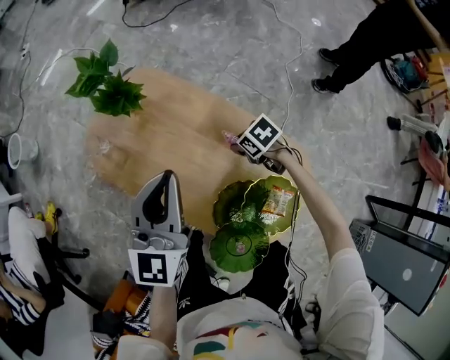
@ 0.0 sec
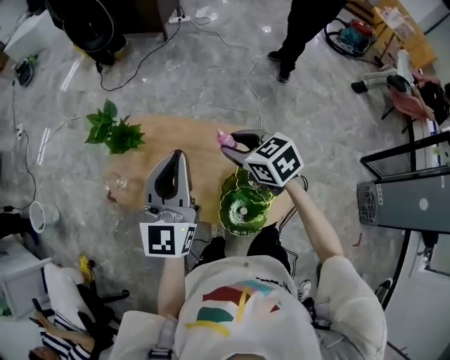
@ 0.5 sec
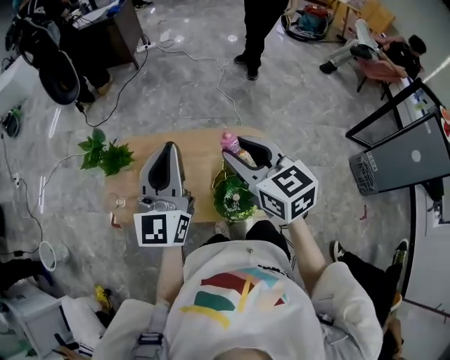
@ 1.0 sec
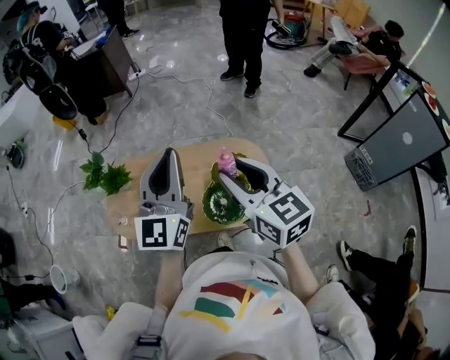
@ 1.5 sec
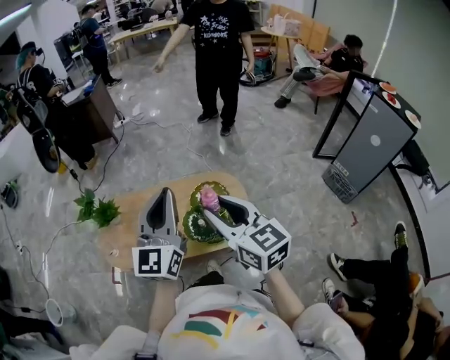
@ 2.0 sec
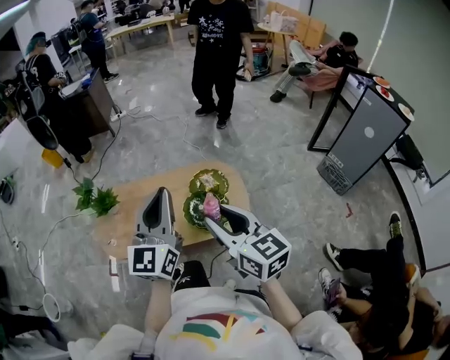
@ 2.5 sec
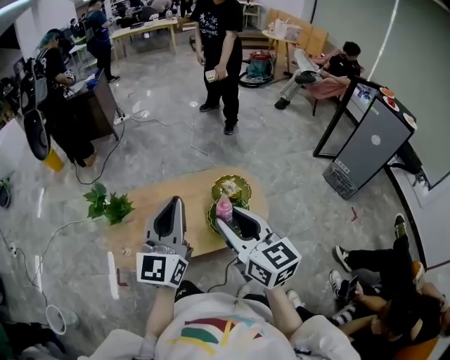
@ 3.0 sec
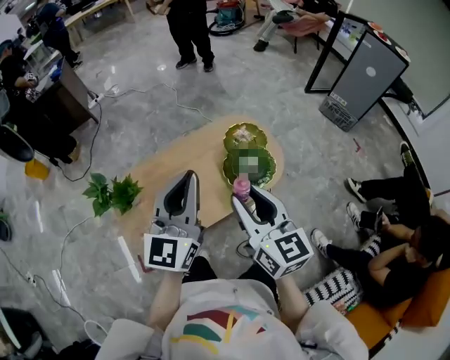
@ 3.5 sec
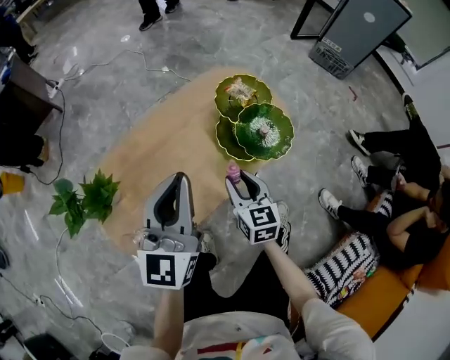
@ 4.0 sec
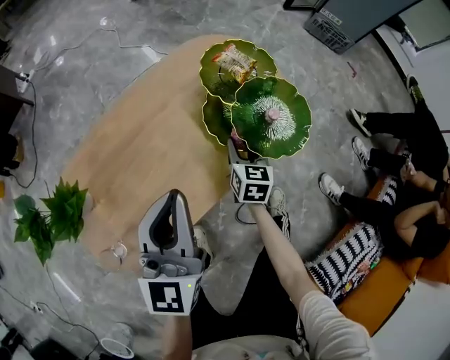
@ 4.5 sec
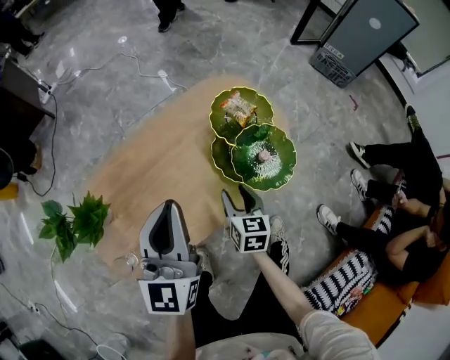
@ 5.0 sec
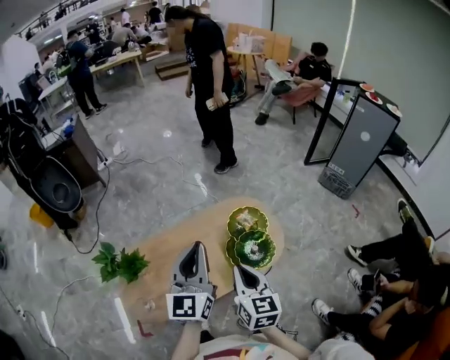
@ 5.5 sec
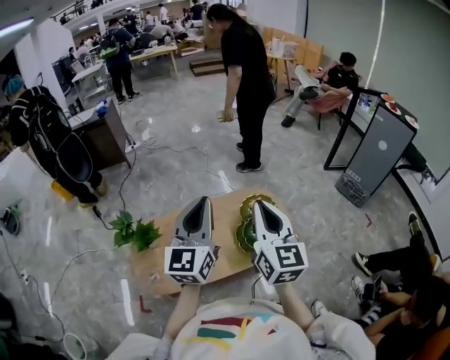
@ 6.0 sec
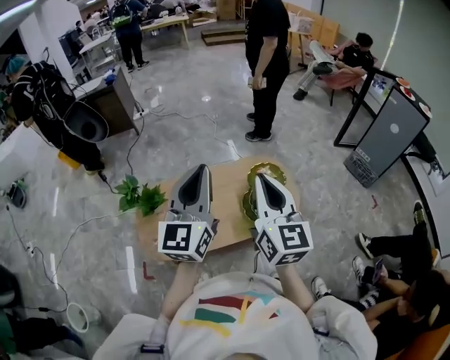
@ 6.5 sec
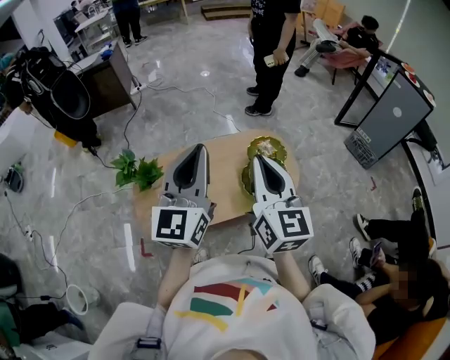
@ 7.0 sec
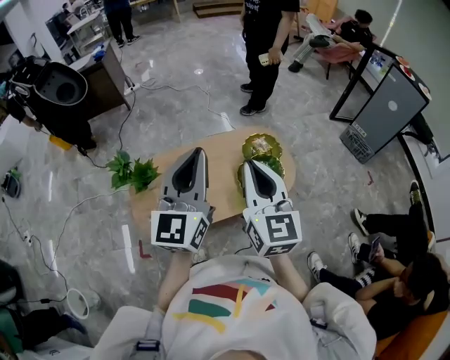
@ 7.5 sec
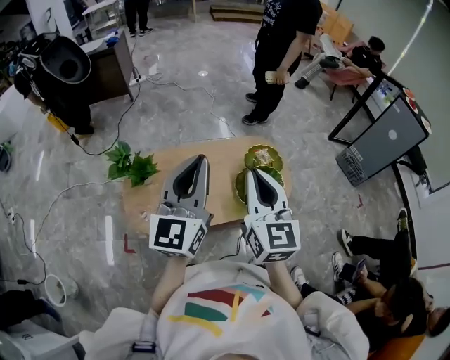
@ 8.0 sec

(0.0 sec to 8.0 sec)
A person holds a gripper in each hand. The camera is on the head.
0.0 sec - 2.0 sec: The left gripper moves about 35 cm, and changes its angle by roughly 40 degrees. Meanwhile the right gripper moves upward, about 50 cm, and tilts its fingers some 60 degrees upward.
2.0 sec - 4.0 sec: The right gripper goes roughly 40 cm downward, and rotates about 50 degrees, while the left gripper goes about 25 cm downward, and rotates about 30 degrees.
4.0 sec - 6.0 sec: The left gripper is displaced upward by about 25 cm, and swivels roughly 20 degrees. The right gripper moves upward, some 40 cm, turns by some 30 degrees, and closes up.
6.0 sec - 8.0 sec: The left gripper travels backward by roughly 5 cm; the right gripper shifts about 5 cm to the left.

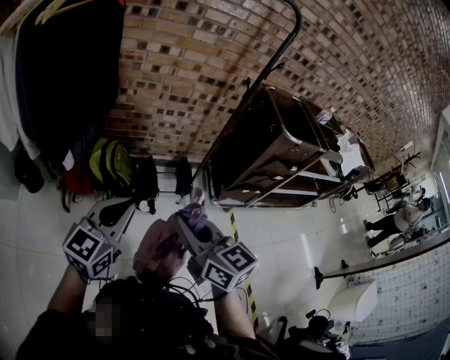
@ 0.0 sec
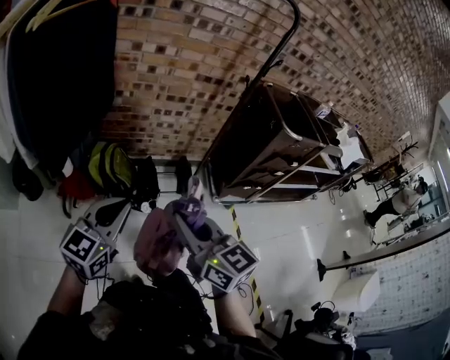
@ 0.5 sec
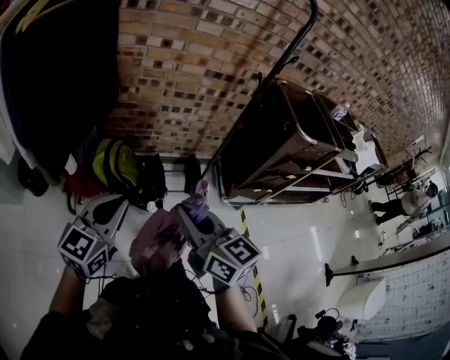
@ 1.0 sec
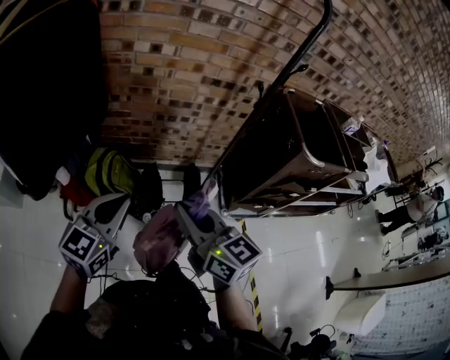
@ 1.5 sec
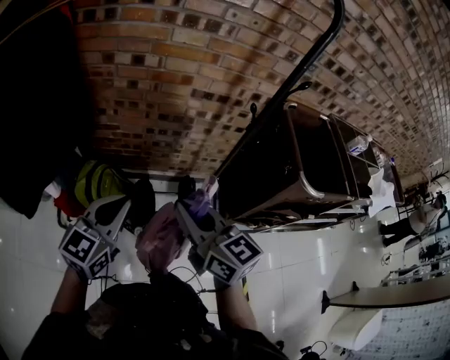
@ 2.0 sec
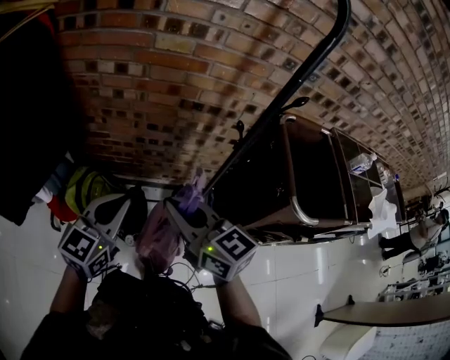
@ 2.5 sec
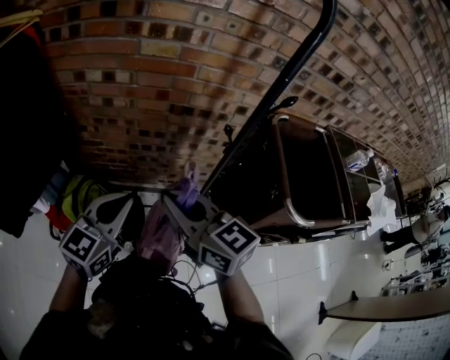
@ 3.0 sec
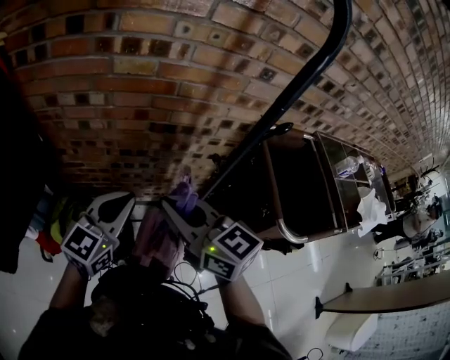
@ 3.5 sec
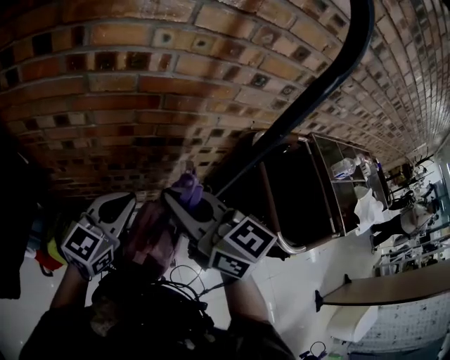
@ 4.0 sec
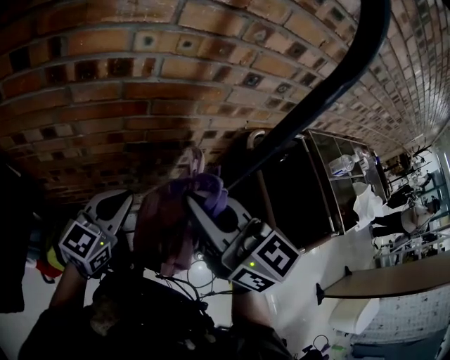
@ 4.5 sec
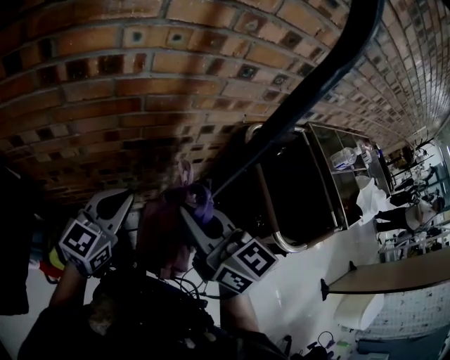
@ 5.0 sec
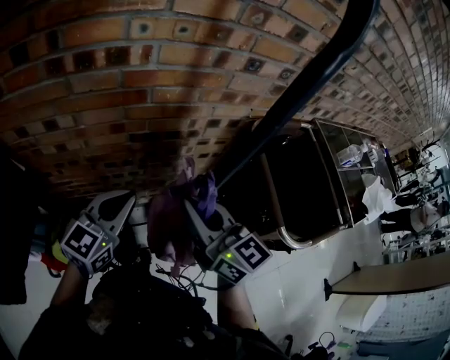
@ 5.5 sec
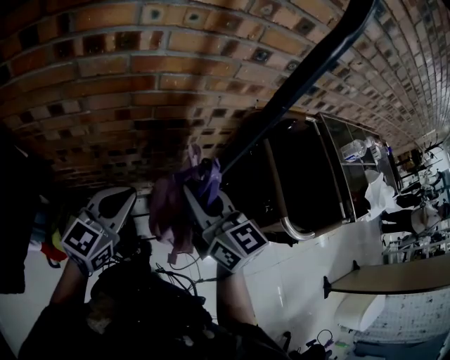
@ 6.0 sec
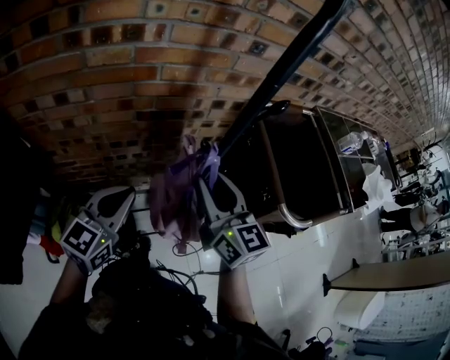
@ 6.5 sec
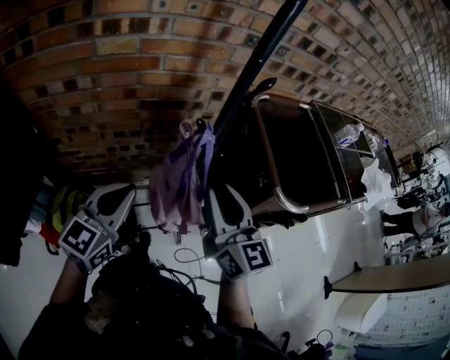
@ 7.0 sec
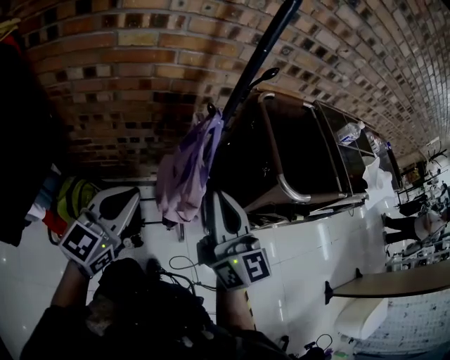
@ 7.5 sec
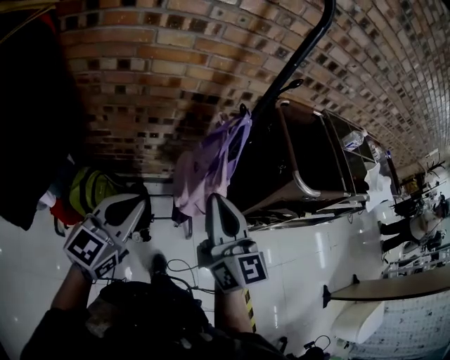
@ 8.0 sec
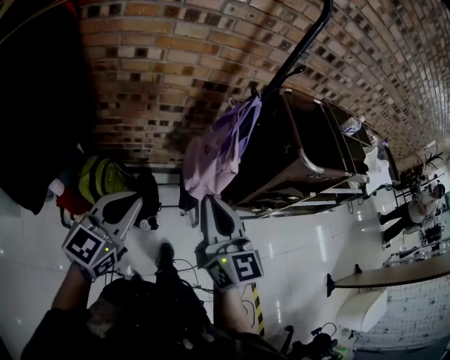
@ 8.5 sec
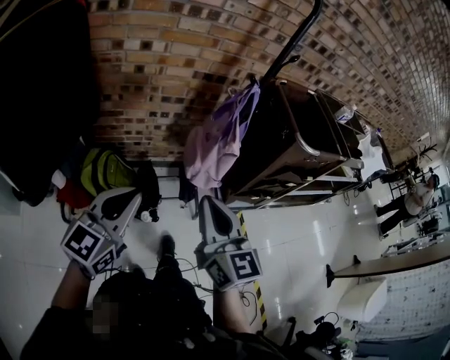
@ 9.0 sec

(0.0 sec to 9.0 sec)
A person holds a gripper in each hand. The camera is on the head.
0.0 sec - 2.0 sec: The two grippers go about 35 cm forward and to the right.
2.0 sec - 4.5 sec: The left gripper goes about 35 cm forward and to the right, while the right gripper is displaced forward, to the right and upward by approximately 35 cm.
4.5 sec - 7.0 sec: The right gripper is displaced backward, downward and to the right by roughly 20 cm, rotates about 20 degrees, and opens; the left gripper moves backward, some 15 cm.
7.0 sec - 9.0 sec: Both grippers travel together backward and to the left, roughly 35 cm. The right gripper closes up.

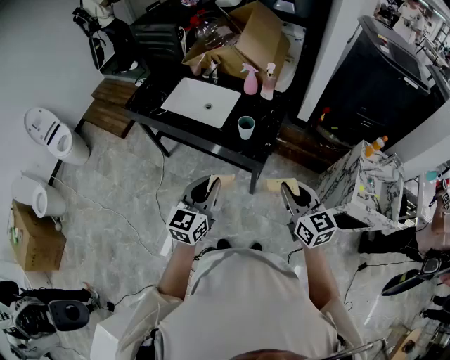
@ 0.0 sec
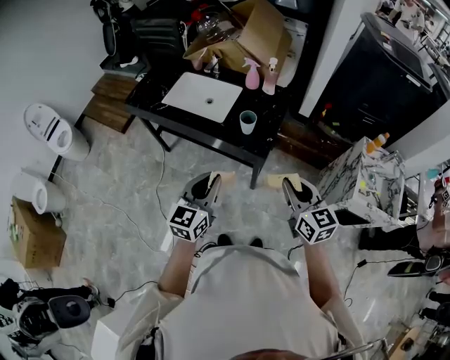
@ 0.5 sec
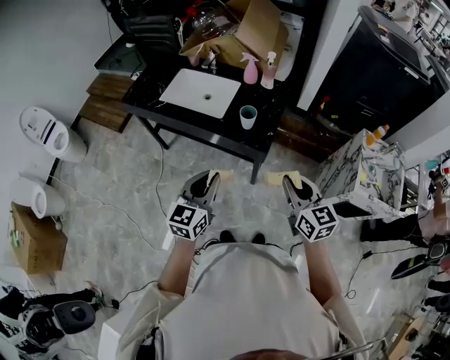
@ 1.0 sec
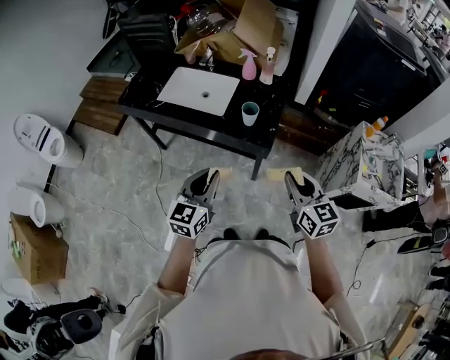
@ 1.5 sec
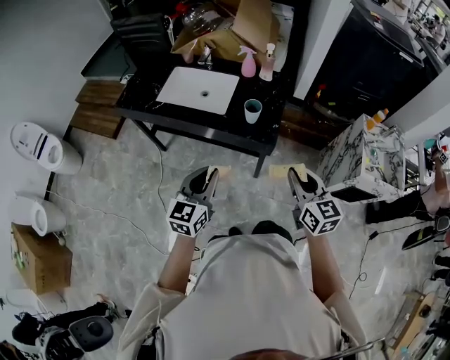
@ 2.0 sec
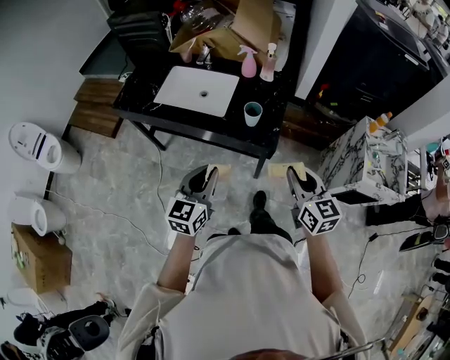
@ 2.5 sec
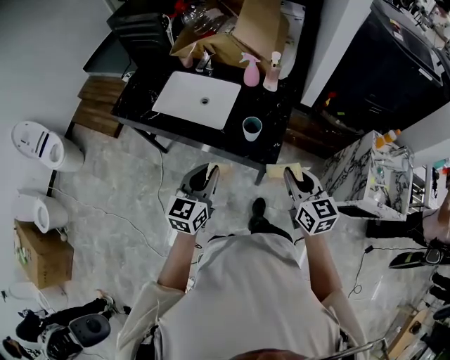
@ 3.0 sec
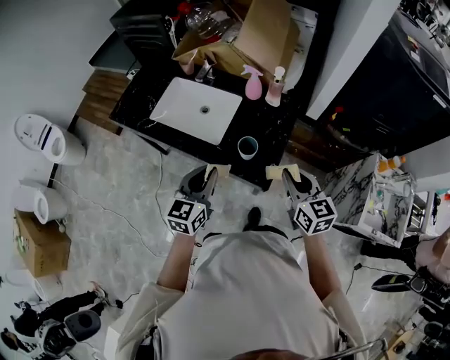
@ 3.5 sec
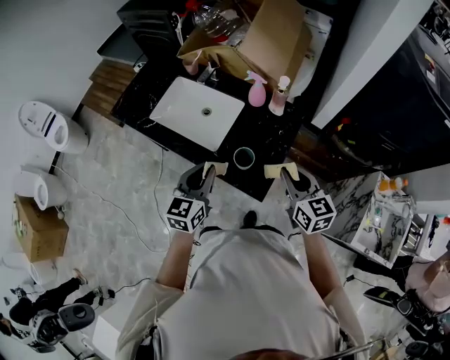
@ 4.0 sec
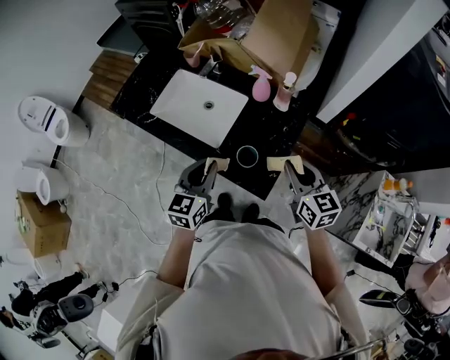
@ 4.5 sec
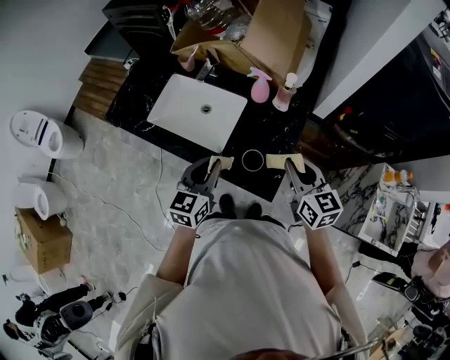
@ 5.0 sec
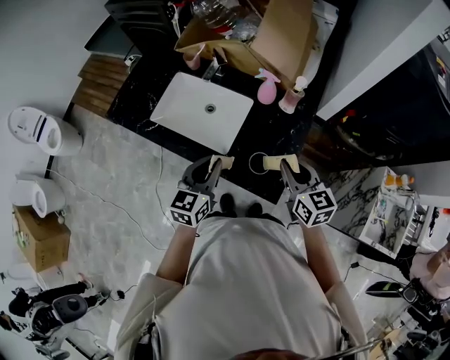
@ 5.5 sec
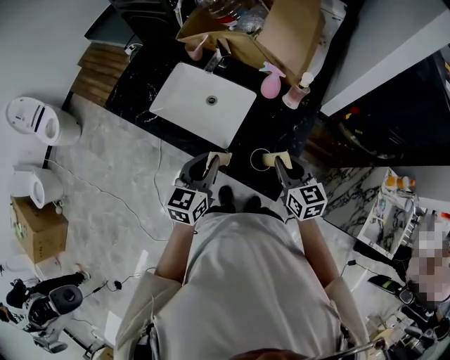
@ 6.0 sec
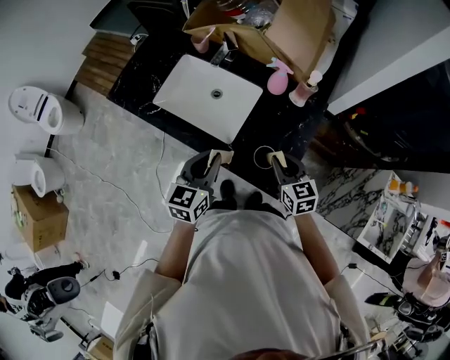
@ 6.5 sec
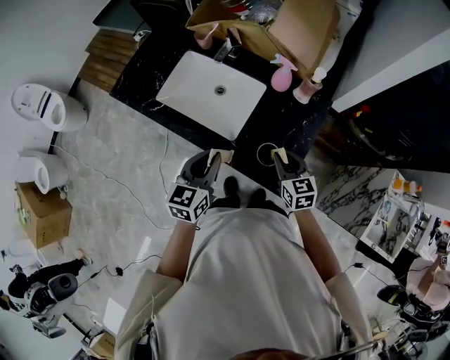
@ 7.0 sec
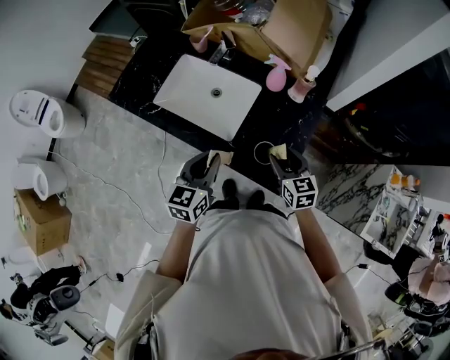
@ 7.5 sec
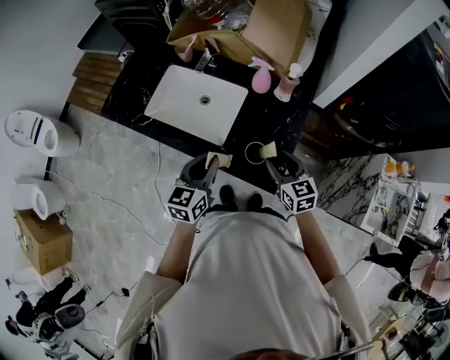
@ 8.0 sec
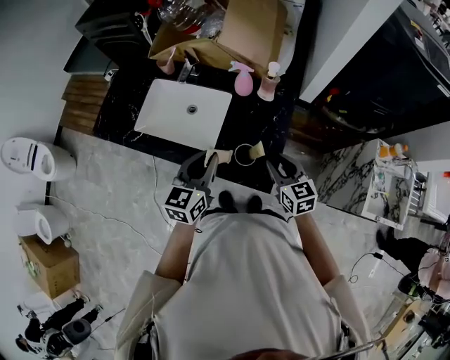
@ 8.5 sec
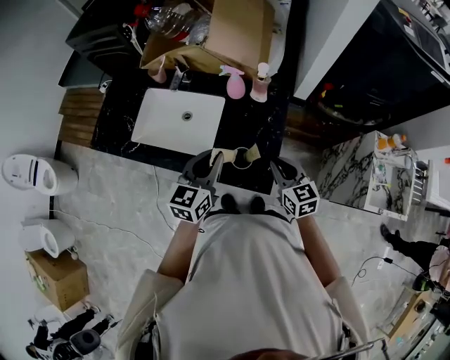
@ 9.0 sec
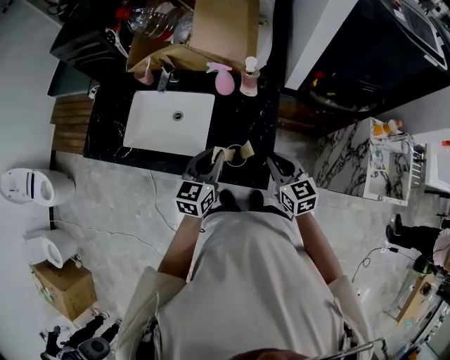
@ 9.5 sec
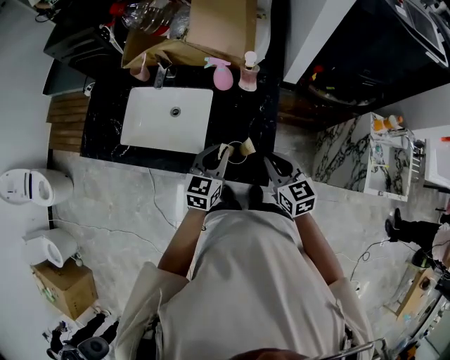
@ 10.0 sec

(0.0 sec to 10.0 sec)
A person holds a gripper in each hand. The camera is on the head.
0.0 sec - 2.0 sec: The grippers both shift to the left by approximately 5 cm.
2.0 sec - 4.0 sec: Both grippers move forward, some 30 cm.
4.0 sec - 6.0 sec: The left gripper is displaced forward and to the left by approximately 10 cm. Meanwhile the right gripper goes some 15 cm to the left, forward and downward.
6.0 sec - 8.0 sec: The right gripper opens up.
8.0 sec - 10.0 sec: The right gripper changes place by approximately 5 cm, and closes its fingers. Meanwhile the left gripper shifts about 15 cm to the right, forward and downward.
